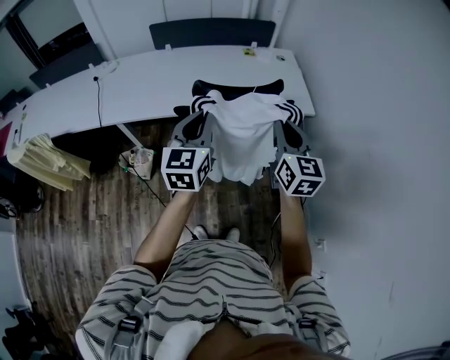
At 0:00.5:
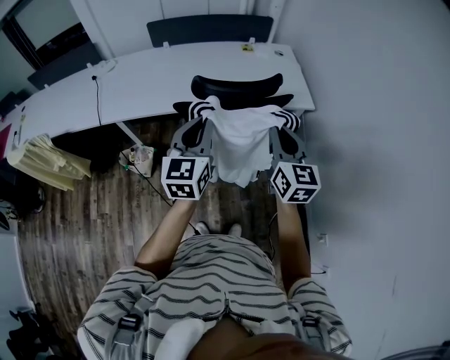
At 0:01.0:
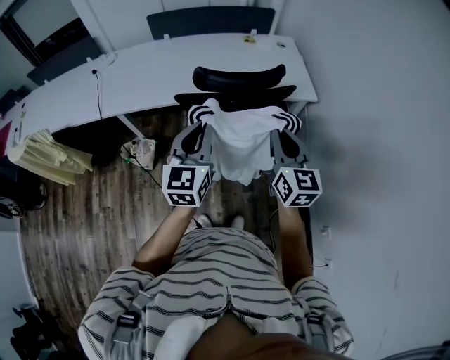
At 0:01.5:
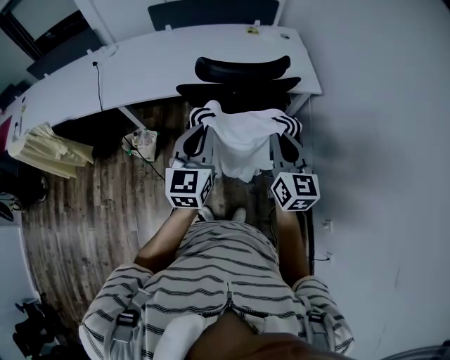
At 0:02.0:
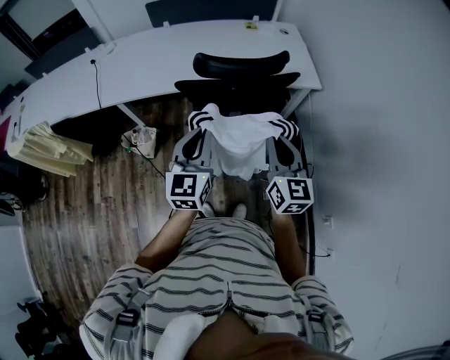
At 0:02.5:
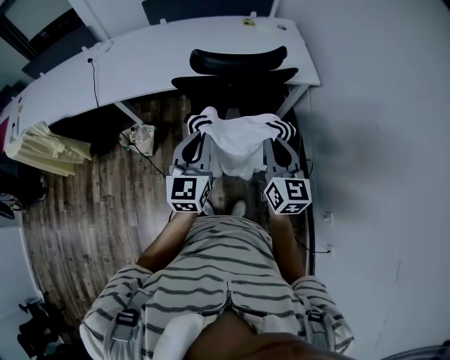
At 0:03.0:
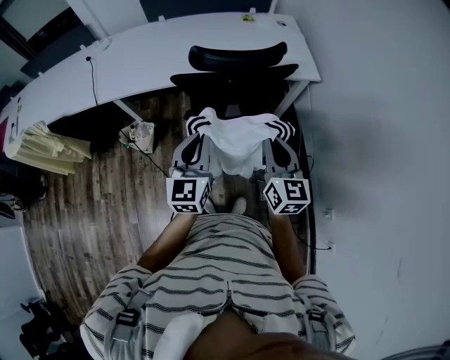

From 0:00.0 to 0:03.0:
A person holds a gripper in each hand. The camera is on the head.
From 0:00.0 to 0:01.5: Both grippers travel together backward and downward, approximately 10 cm.
From 0:01.5 to 0:03.0: The right gripper shifts by some 5 cm. Meanwhile the left gripper changes place by about 5 cm.

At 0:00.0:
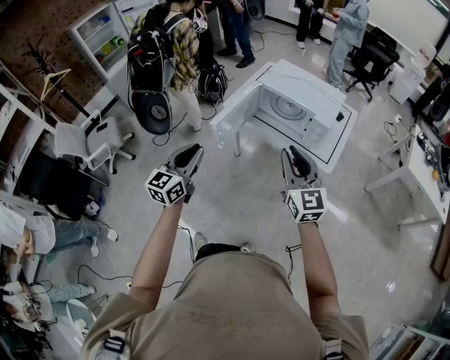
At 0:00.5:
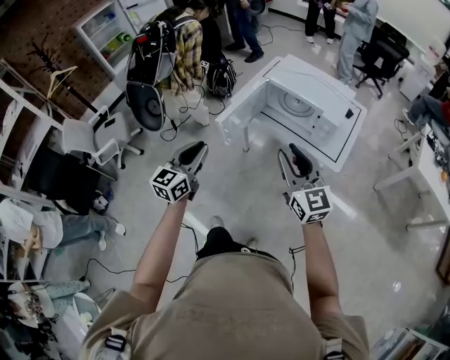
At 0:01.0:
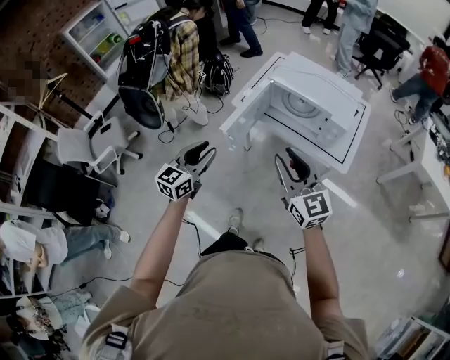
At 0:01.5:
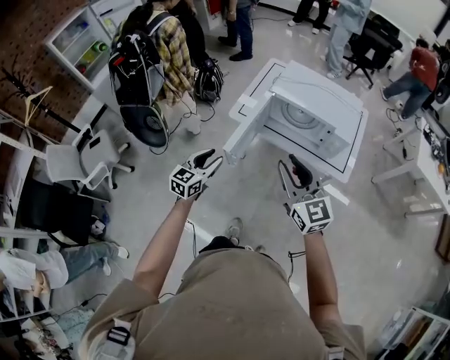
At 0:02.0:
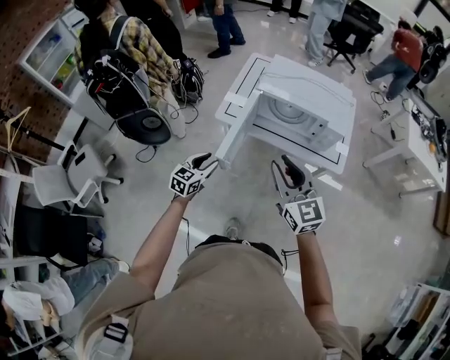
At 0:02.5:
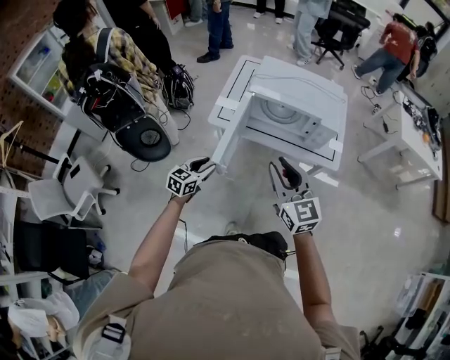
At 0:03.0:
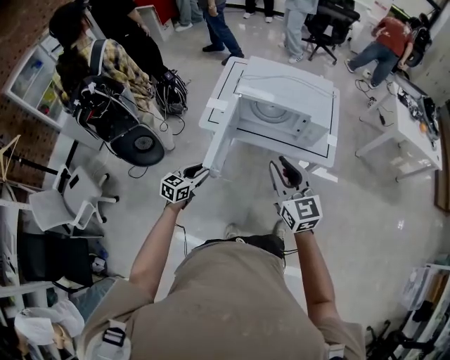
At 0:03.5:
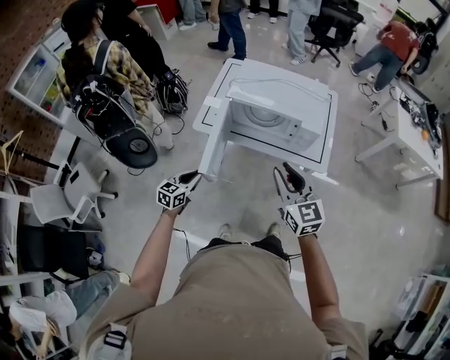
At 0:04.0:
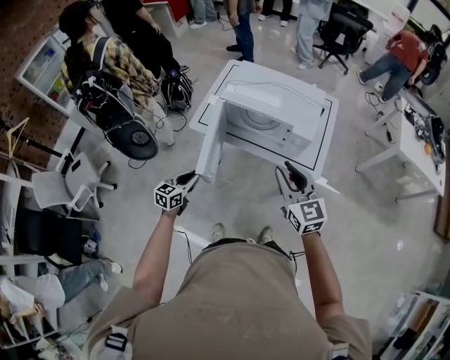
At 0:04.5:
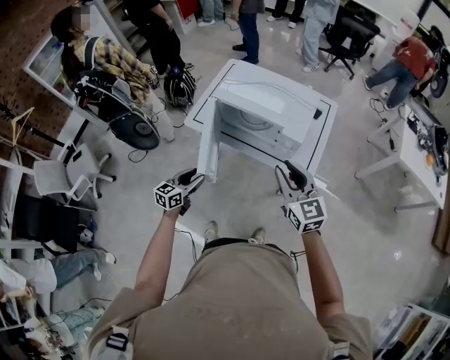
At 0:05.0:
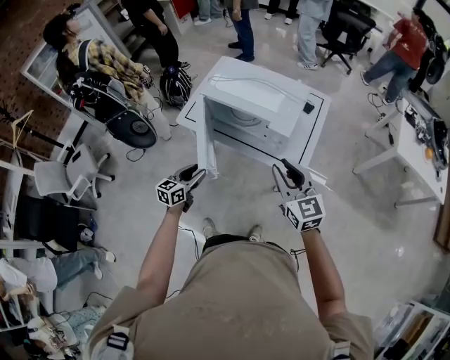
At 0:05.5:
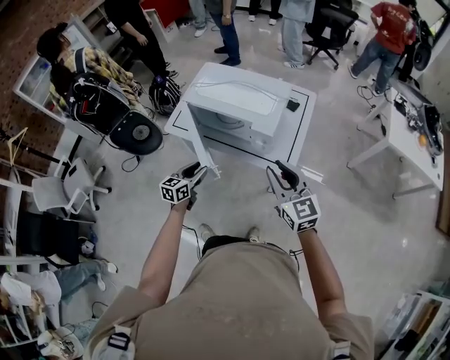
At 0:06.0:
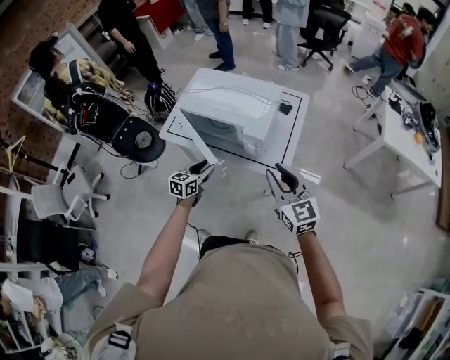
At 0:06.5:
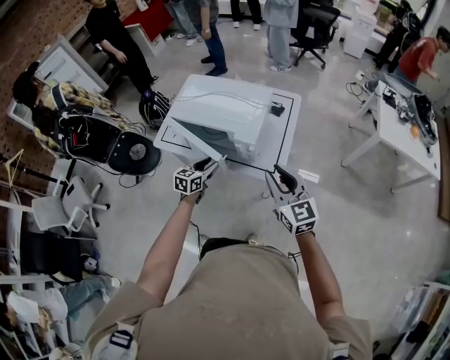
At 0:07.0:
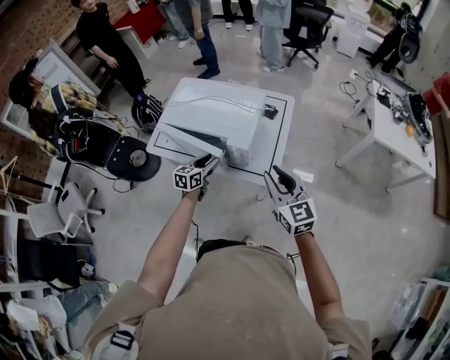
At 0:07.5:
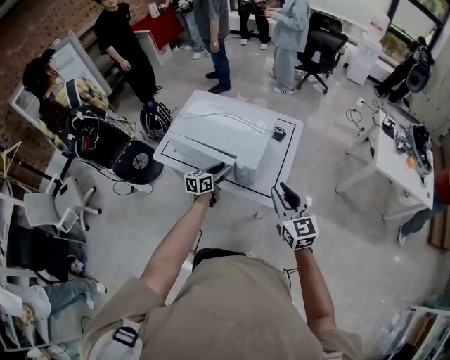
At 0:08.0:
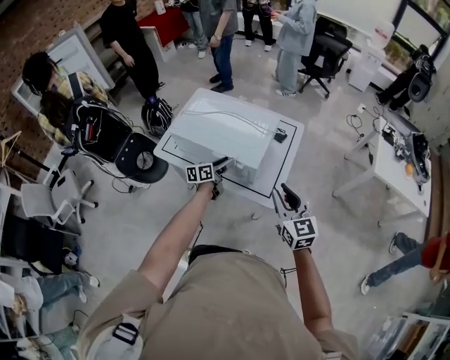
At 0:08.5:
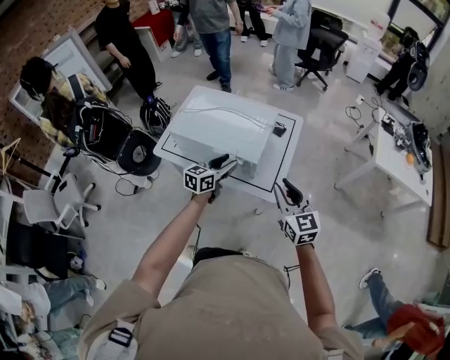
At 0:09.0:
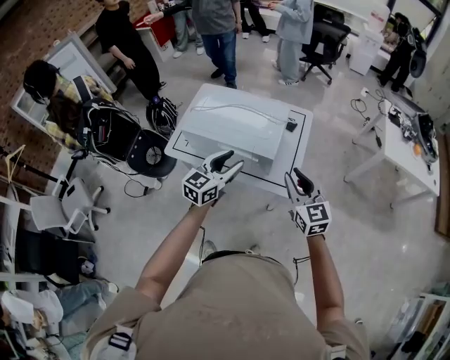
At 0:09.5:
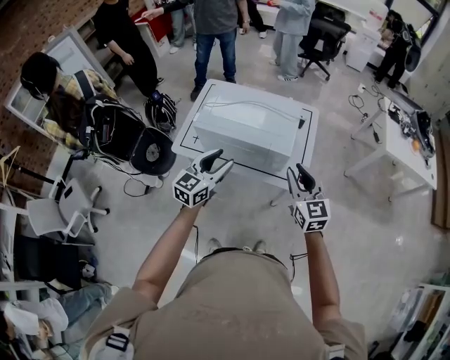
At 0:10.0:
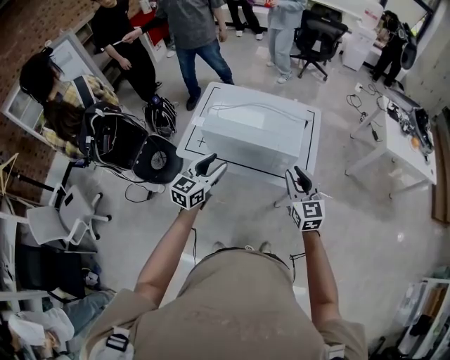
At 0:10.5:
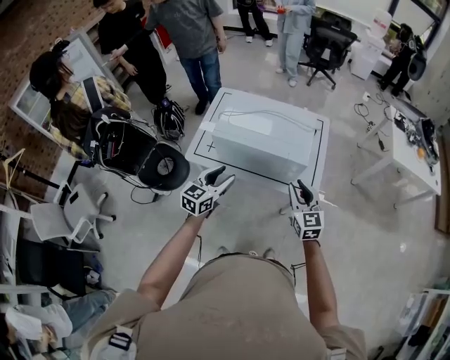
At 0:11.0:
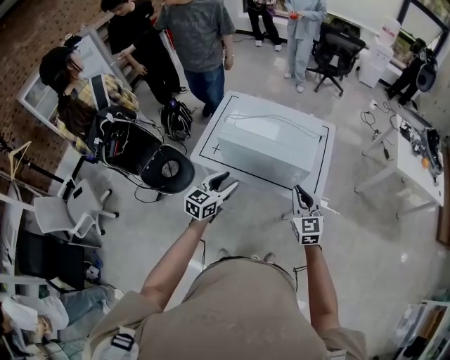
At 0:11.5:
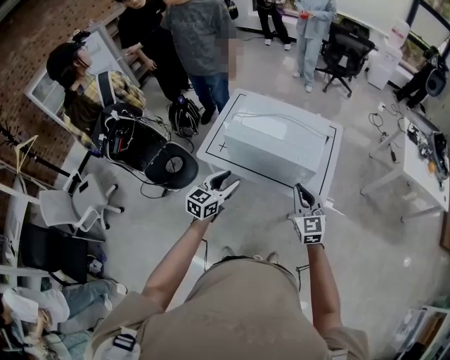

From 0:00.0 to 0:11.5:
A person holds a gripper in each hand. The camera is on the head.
From 0:00.0 to 0:02.0: The left gripper travels forward and downward by some 30 cm, swivels some 30 degrees, and opens. Meanwhile the right gripper travels to the left and forward by roughly 20 cm.
From 0:02.0 to 0:04.0: The left gripper shifts approximately 10 cm to the right, and closes. The right gripper heads to the right, covering roughly 20 cm.
From 0:04.0 to 0:06.0: The two grippers go roughly 20 cm to the right. The left gripper opens its fingers.
From 0:06.0 to 0:07.5: The right gripper shifts about 5 cm forward. The left gripper travels forward and to the right by some 15 cm.
From 0:07.5 to 0:09.5: The left gripper is displaced upward, to the left and backward by about 25 cm, and changes its angle by some 30 degrees; the right gripper goes about 10 cm to the left.
From 0:09.5 to 0:11.5: Both grippers travel together to the left and downward, some 10 cm. The right gripper closes up.

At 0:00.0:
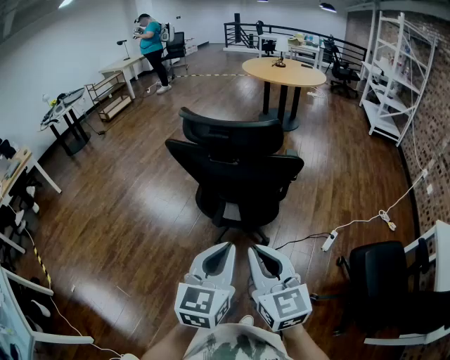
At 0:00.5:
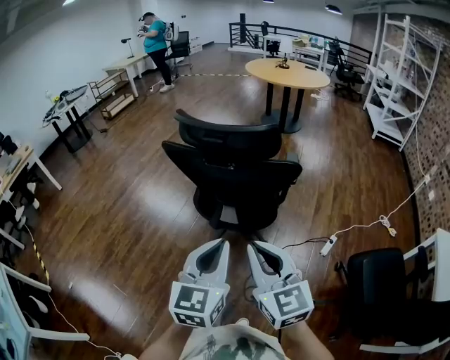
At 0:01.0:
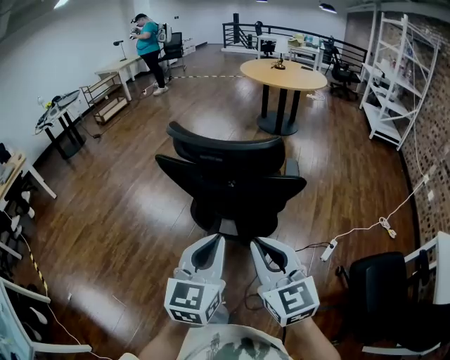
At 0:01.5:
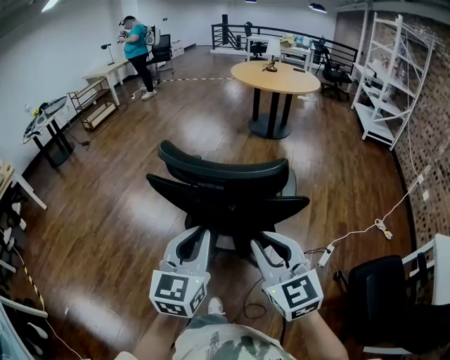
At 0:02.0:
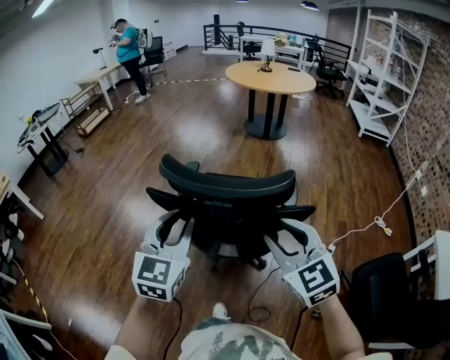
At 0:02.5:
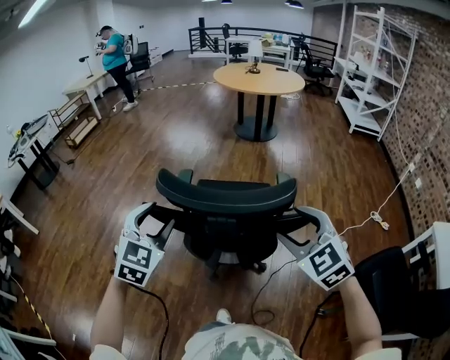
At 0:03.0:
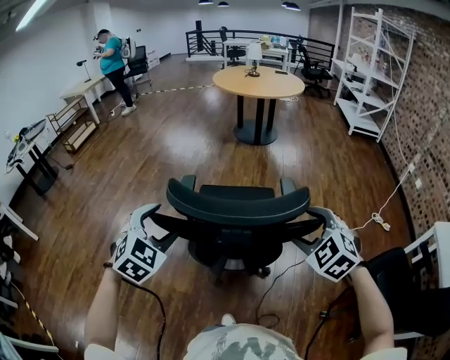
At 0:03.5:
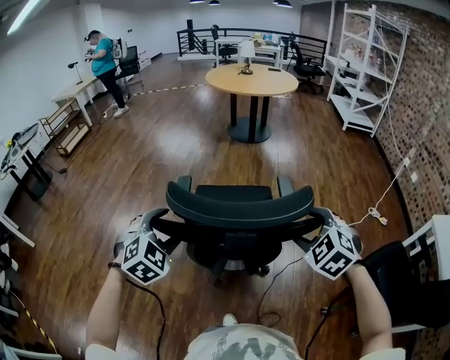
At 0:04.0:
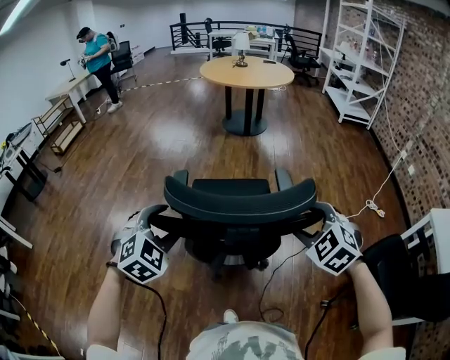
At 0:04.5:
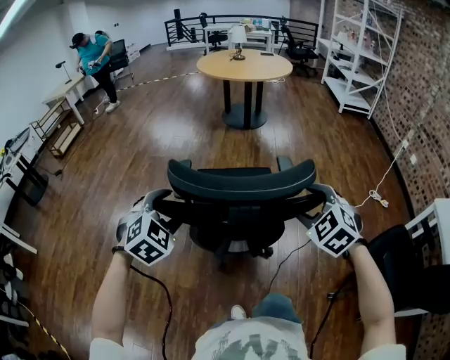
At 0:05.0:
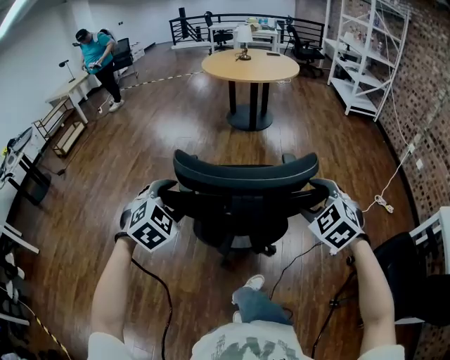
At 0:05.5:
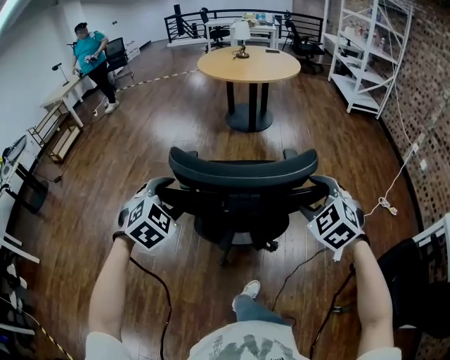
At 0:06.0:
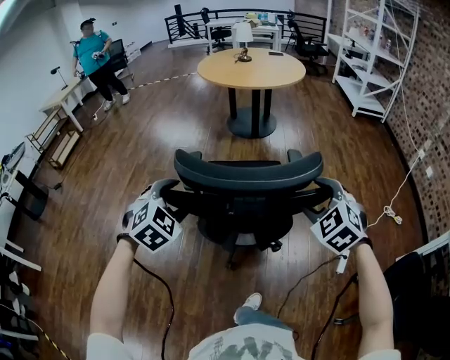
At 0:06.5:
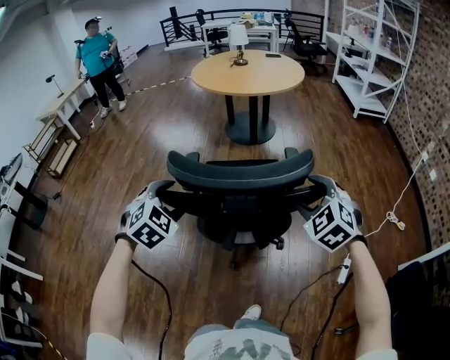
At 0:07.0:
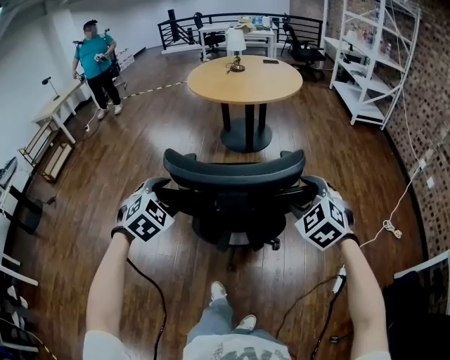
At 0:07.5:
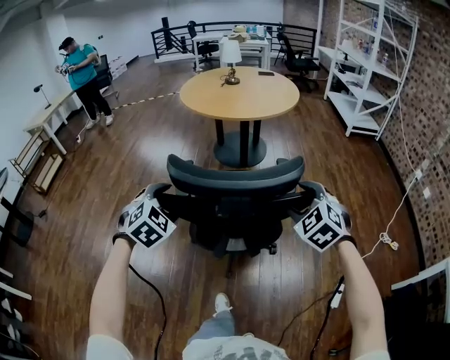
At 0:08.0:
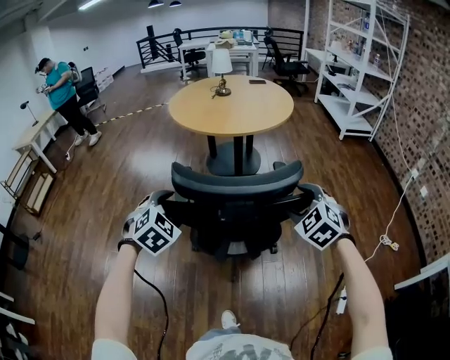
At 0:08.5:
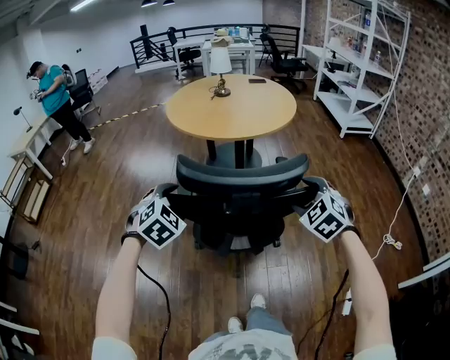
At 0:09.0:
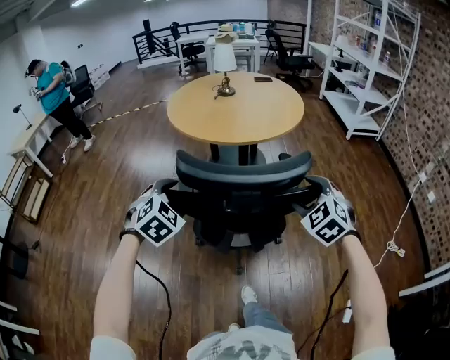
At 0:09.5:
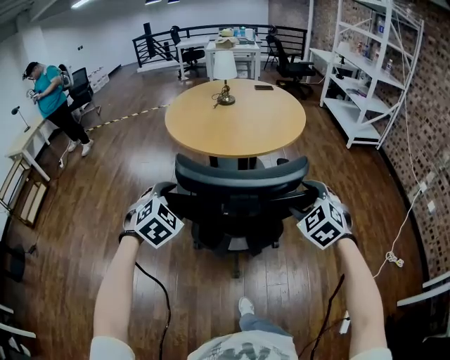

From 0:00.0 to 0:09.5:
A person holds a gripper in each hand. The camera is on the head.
From 0:00.0 to 0:02.0: The two grippers go about 25 cm forward. The right gripper turns by approximately 20 degrees, and opens its fingers.
From 0:02.0 to 0:04.0: The left gripper shifts approximately 15 cm forward, downward and to the left, swivels some 50 degrees, and opens its fingers; the right gripper travels forward, downward and to the right by roughly 10 cm, turns by some 40 degrees, and opens.
From 0:04.0 to 0:05.5: Both grippers travel together forward, about 20 cm.
From 0:05.5 to 0:07.5: Both grippers travel together forward, approximately 35 cm.
From 0:07.5 to 0:09.5: Both grippers travel together forward, about 30 cm.

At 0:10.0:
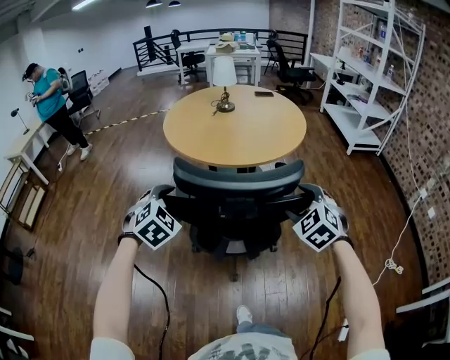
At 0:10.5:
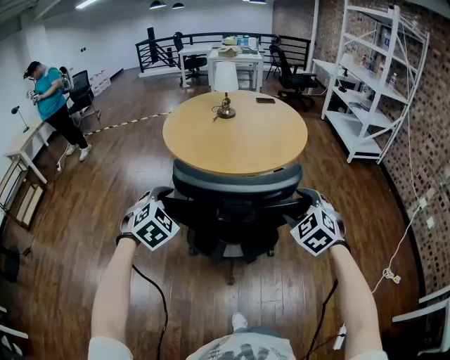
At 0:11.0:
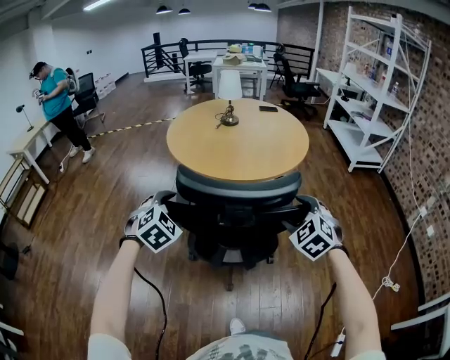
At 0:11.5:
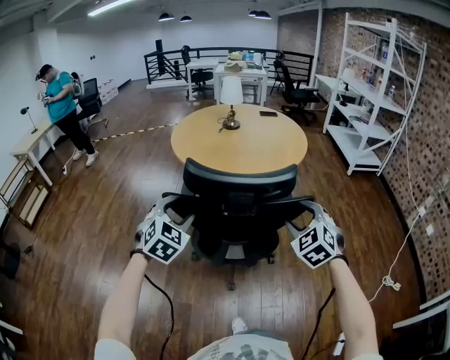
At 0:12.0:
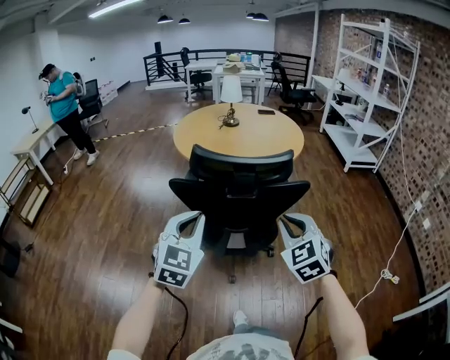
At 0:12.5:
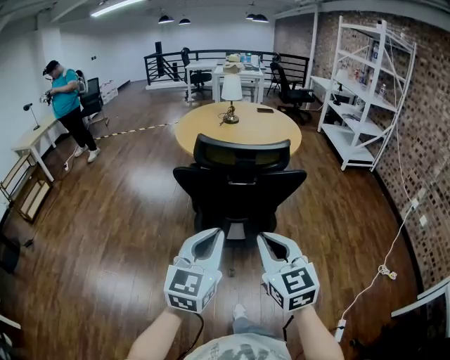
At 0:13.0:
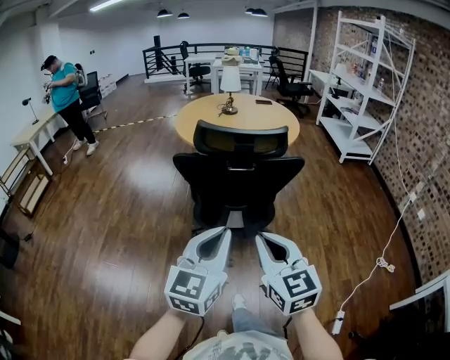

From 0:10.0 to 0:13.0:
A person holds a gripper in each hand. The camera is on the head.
From 0:10.0 to 0:11.5: The grippers move only a little.
From 0:11.5 to 0:13.0: The right gripper is displaced backward and to the left by approximately 30 cm, rotates roughly 40 degrees, and closes up, while the left gripper travels backward and to the right by approximately 30 cm, changes its angle by about 50 degrees, and closes.
